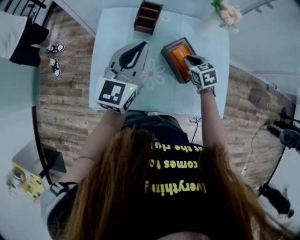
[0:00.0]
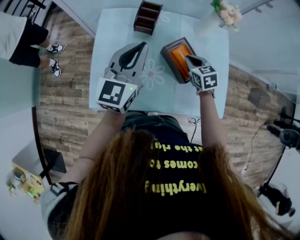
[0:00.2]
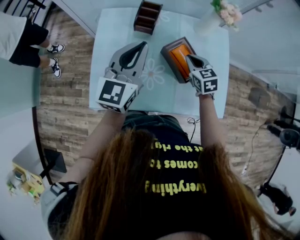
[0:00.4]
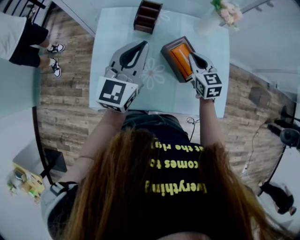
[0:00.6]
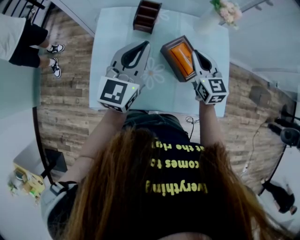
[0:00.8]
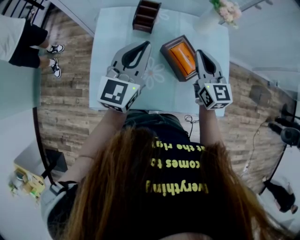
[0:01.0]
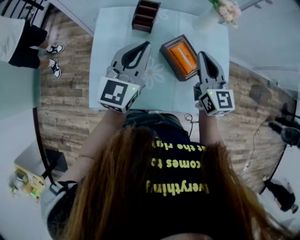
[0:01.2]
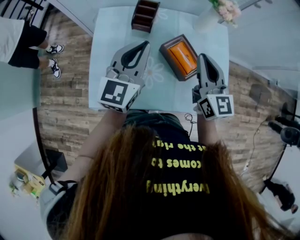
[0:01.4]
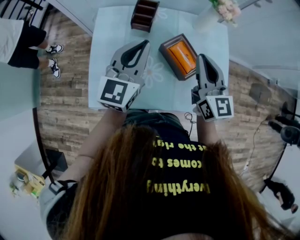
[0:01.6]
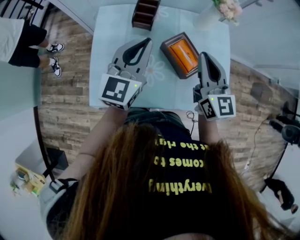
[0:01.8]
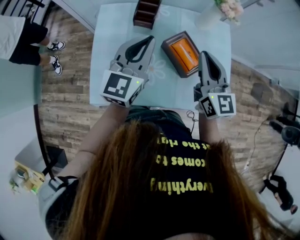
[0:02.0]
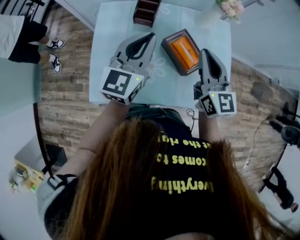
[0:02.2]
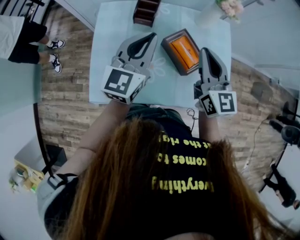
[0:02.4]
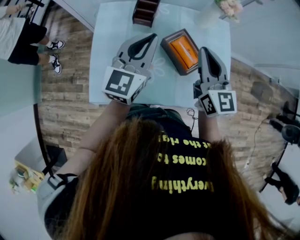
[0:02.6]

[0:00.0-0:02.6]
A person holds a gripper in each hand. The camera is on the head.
0.0 to 1.2 s: The right gripper heads upward, covering approximately 20 cm, and tilts its fingers about 40 degrees upward.
1.2 to 2.6 s: The grippers stay close to where they were, moving slightly.

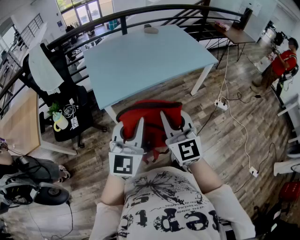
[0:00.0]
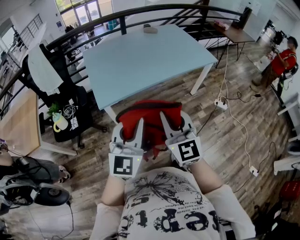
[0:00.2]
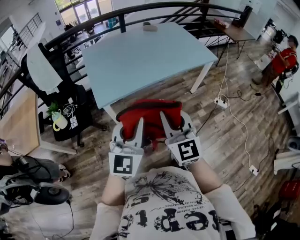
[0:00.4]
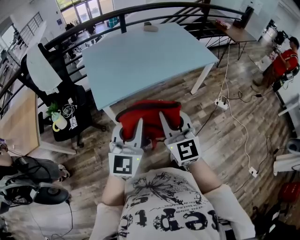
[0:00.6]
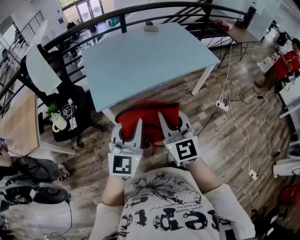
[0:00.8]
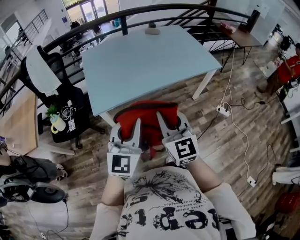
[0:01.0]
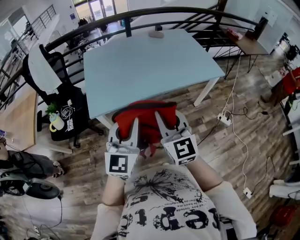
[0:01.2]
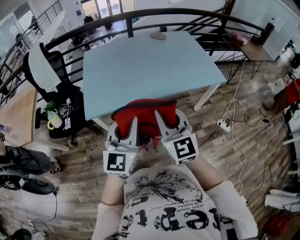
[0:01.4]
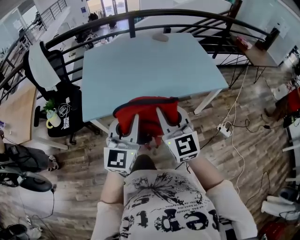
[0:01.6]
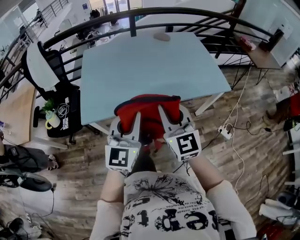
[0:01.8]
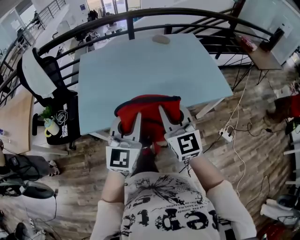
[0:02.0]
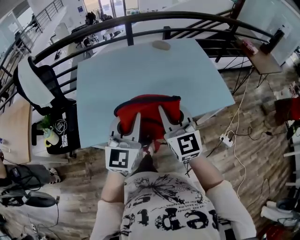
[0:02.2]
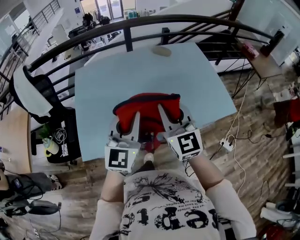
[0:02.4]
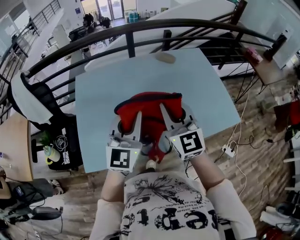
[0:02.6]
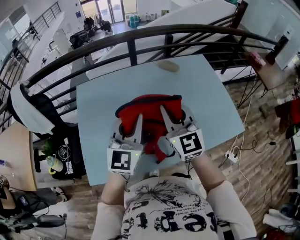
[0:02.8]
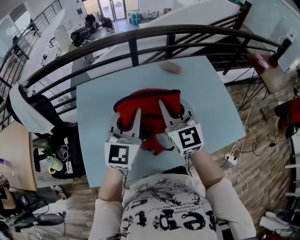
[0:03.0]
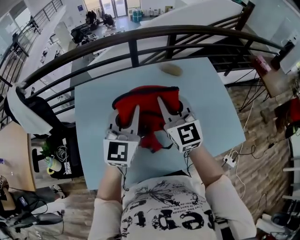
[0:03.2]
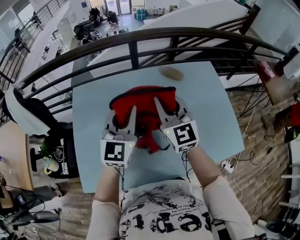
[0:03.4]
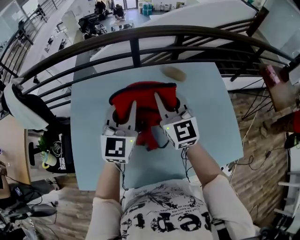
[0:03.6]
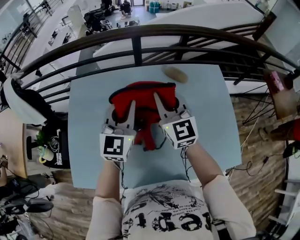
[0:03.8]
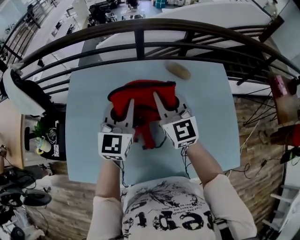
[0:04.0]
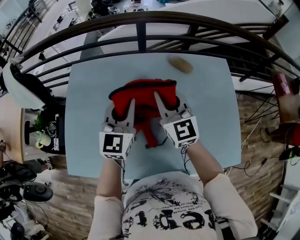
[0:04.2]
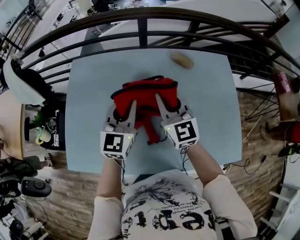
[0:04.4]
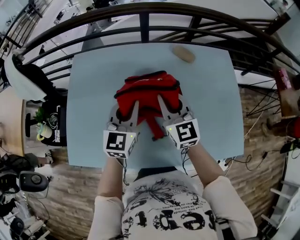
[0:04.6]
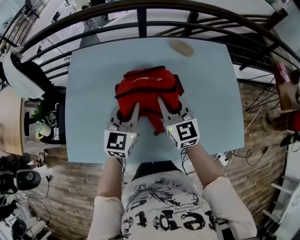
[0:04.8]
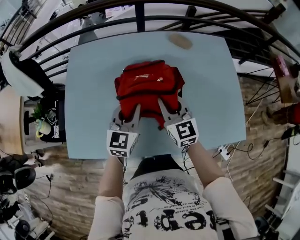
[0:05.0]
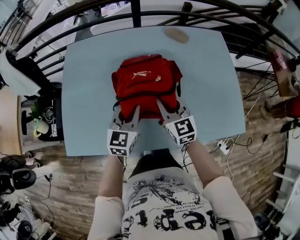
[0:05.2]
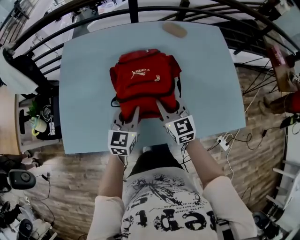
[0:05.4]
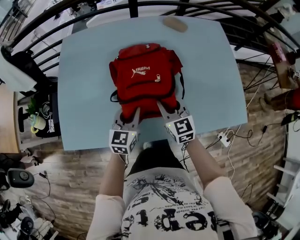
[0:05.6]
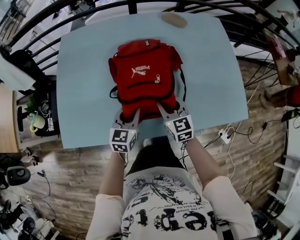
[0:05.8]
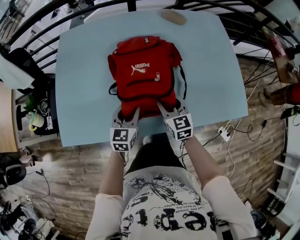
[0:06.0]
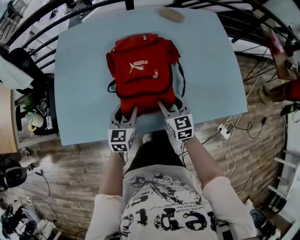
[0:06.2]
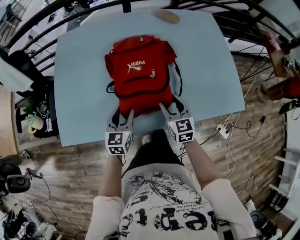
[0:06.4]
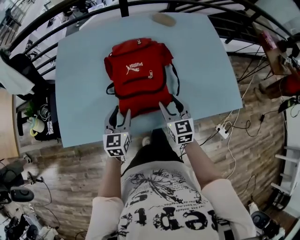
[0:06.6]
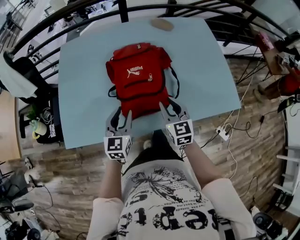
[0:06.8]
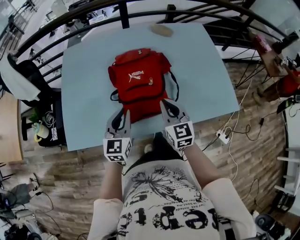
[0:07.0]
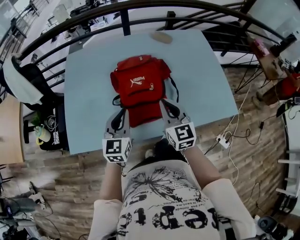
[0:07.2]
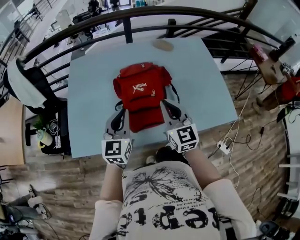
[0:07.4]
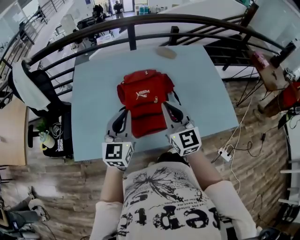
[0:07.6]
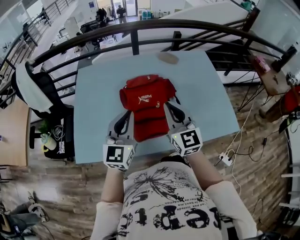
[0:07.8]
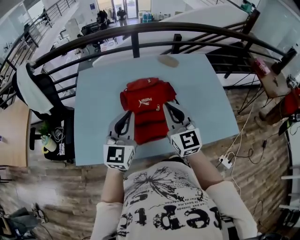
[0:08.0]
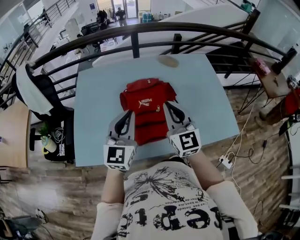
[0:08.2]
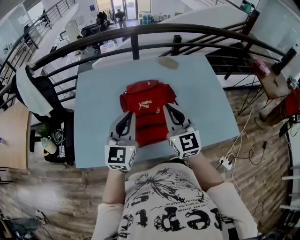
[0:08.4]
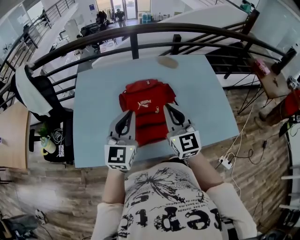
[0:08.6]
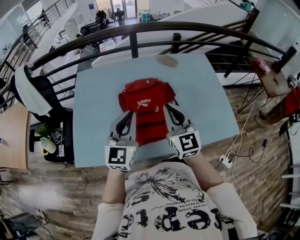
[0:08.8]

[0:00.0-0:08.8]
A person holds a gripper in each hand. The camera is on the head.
0.0 to 1.4 s: The two grippers go some 20 cm forward and to the right.
1.4 to 3.0 s: The pair of grippers is taken forward, roughly 50 cm.
3.0 to 4.4 s: The two grippers go about 15 cm forward, downward and to the right.
4.4 to 5.8 s: Both grippers travel together downward and backward, some 30 cm. The right gripper turns by roughly 20 degrees, and opens up, while the left gripper turns by some 20 degrees.
5.8 to 7.4 s: Both grippers travel together upward, about 20 cm. The right gripper closes up.
7.4 to 8.8 s: Both grippers move upward, about 5 cm.

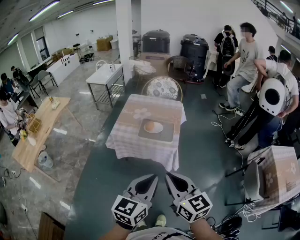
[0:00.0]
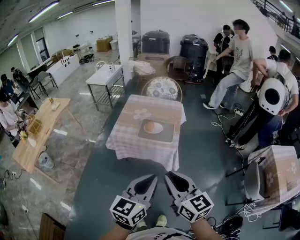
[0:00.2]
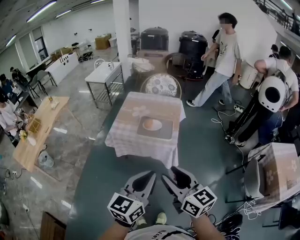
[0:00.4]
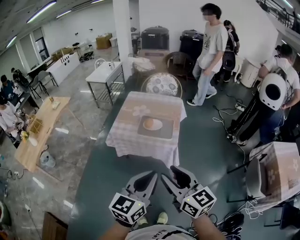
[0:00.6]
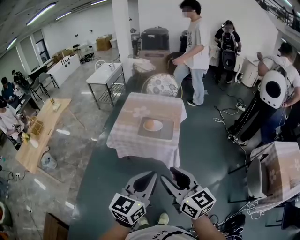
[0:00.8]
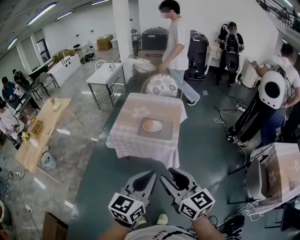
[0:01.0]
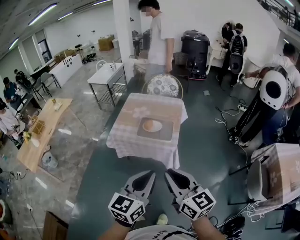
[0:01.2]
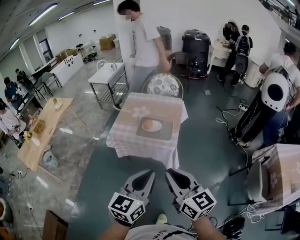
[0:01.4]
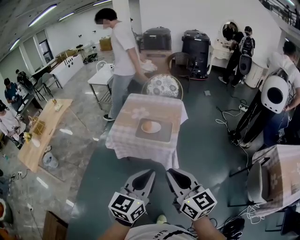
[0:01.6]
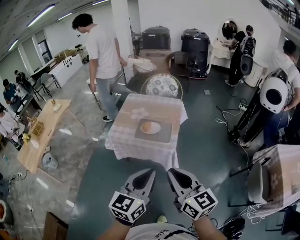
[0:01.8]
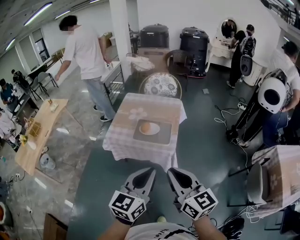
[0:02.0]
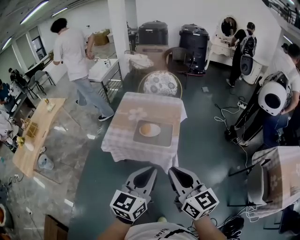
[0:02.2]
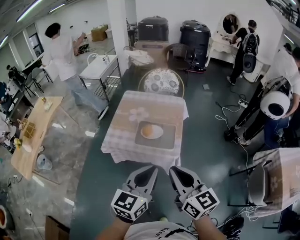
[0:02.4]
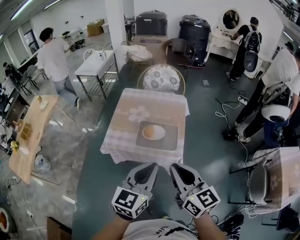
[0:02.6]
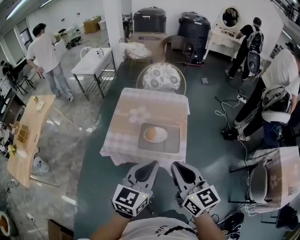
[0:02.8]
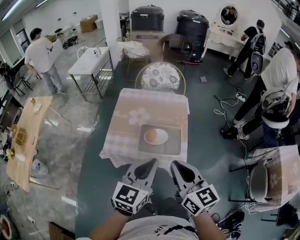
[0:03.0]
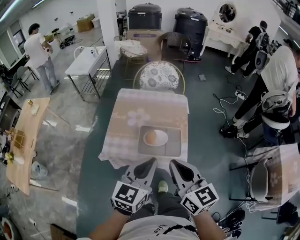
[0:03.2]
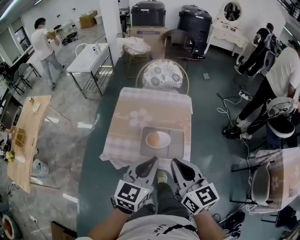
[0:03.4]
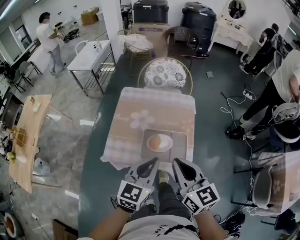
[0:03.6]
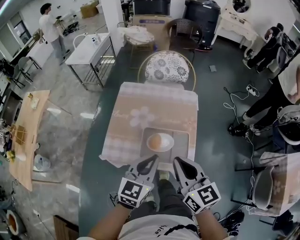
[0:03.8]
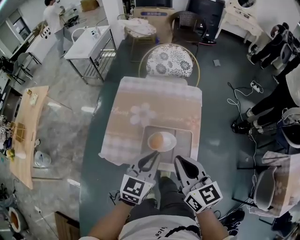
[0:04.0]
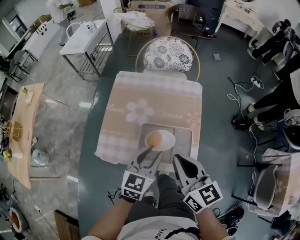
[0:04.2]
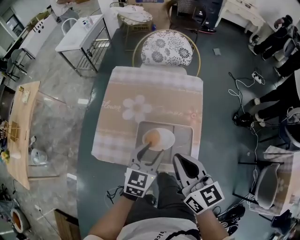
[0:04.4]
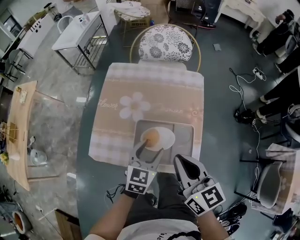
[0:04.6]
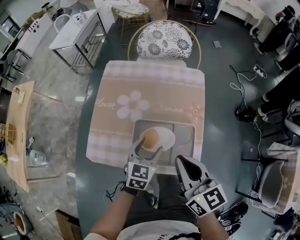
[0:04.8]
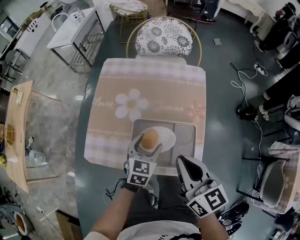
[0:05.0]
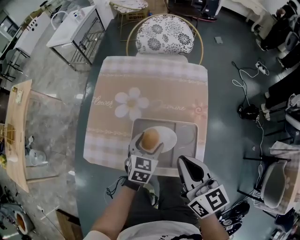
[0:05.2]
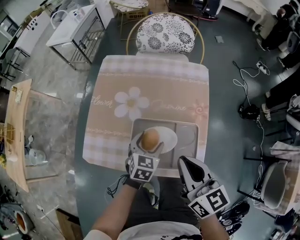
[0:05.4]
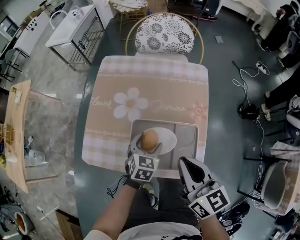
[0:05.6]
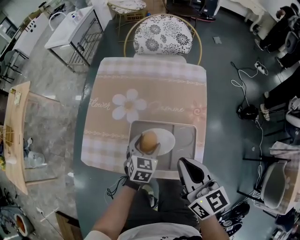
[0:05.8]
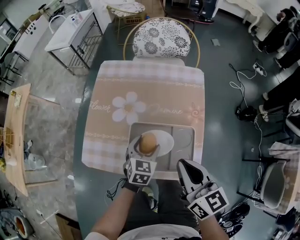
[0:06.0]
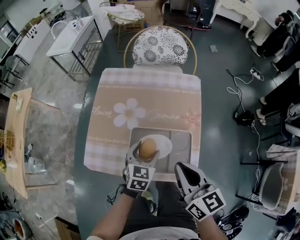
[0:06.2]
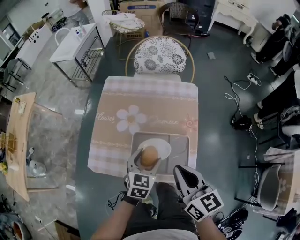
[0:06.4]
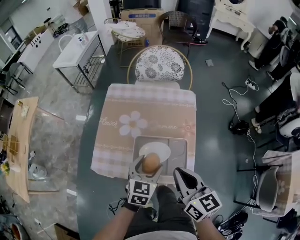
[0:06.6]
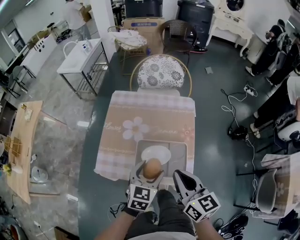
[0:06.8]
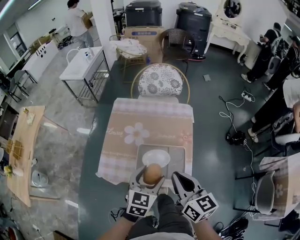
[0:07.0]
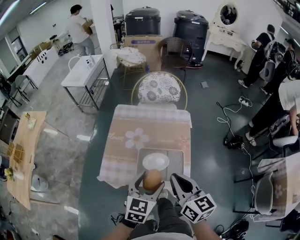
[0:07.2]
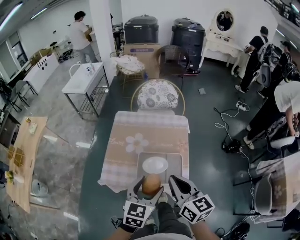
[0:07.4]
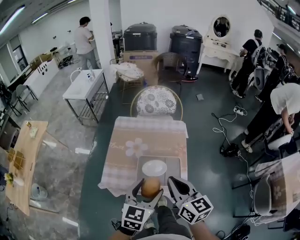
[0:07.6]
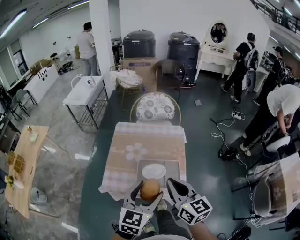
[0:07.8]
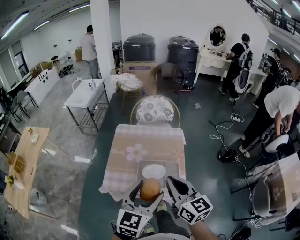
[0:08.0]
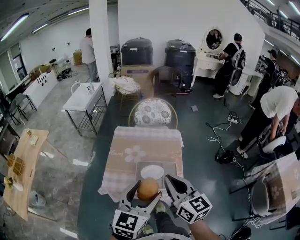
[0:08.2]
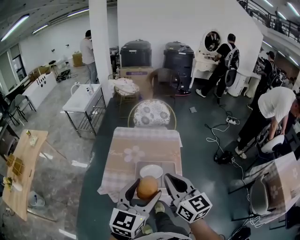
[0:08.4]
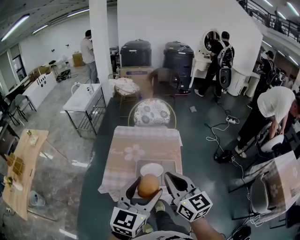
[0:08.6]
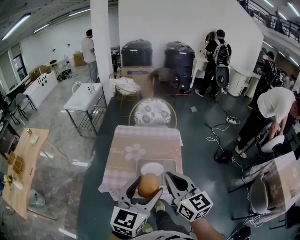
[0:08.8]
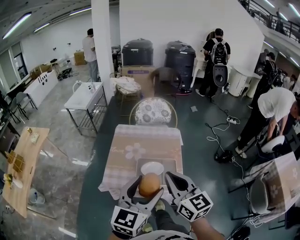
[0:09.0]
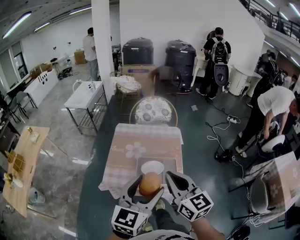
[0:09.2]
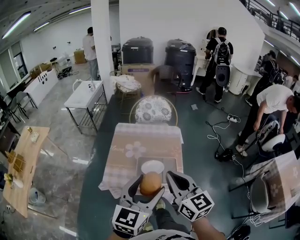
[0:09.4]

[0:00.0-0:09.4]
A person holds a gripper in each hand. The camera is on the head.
0.0 to 1.6 s: The left gripper ends up roughly 5 cm from where it was. Meanwhile the right gripper goes about 5 cm to the right, and opens, then closes again.
1.6 to 3.2 s: The two grippers go about 30 cm forward.
3.2 to 4.8 s: The left gripper is displaced downward and forward by about 35 cm, swivels roughly 20 degrees, and opens up. The right gripper heads downward and forward, covering about 25 cm.
4.8 to 6.2 s: The left gripper reaches some 10 cm downward, then returns.
6.2 to 7.8 s: The left gripper travels upward and backward by some 35 cm, and swivels roughly 20 degrees; the right gripper is displaced upward and backward by roughly 20 cm.
7.8 to 9.4 s: The right gripper goes roughly 5 cm upward. The left gripper is displaced upward and backward by roughly 10 cm.

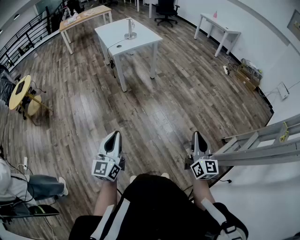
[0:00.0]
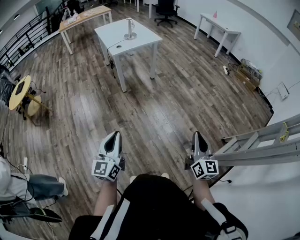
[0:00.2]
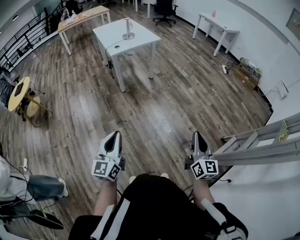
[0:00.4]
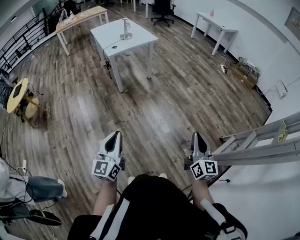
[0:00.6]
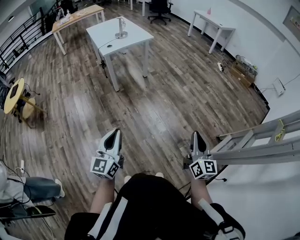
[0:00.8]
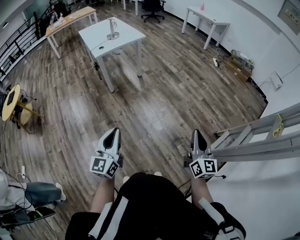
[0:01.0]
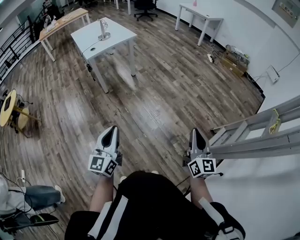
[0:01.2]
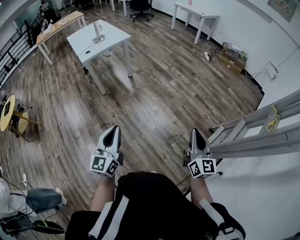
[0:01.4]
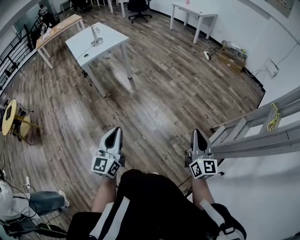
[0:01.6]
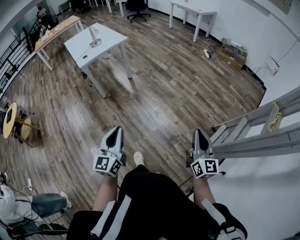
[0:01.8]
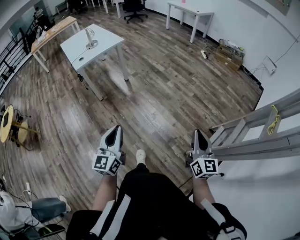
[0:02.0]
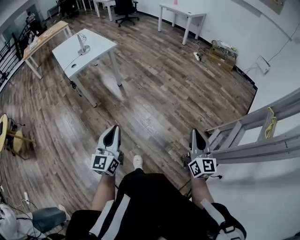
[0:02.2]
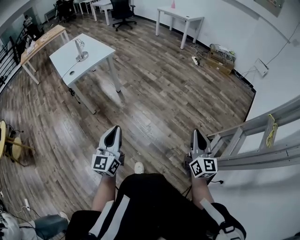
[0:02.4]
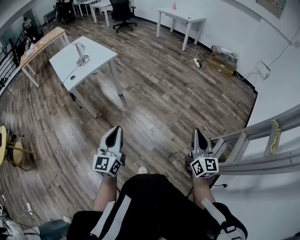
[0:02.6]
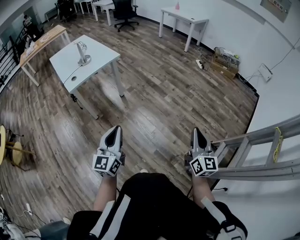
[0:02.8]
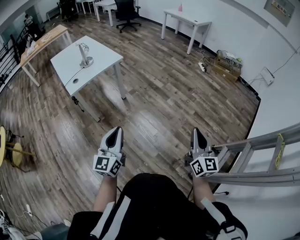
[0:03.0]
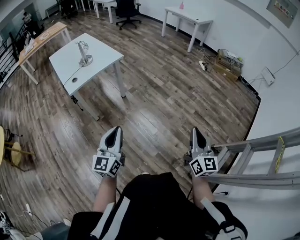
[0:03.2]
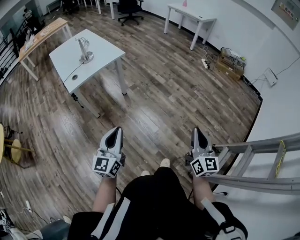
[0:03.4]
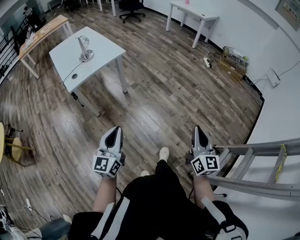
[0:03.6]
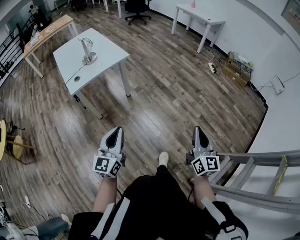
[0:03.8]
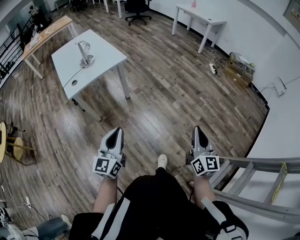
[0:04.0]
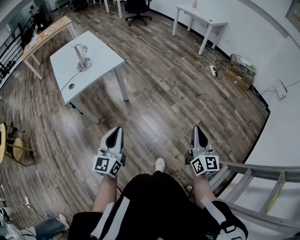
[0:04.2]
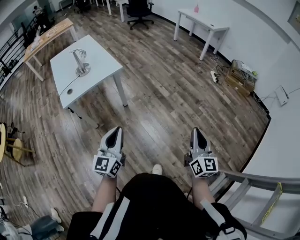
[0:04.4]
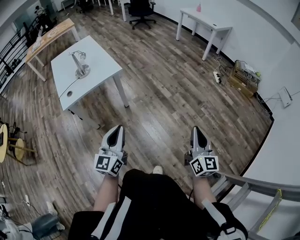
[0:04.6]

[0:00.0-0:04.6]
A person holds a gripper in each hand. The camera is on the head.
0.0 to 1.6 s: The right gripper shifts about 20 cm to the right. Meanwhile the left gripper is displaced to the right and forward by approximately 20 cm.
1.6 to 3.0 s: The right gripper moves forward and to the left, about 25 cm; the left gripper travels forward by about 25 cm.
3.0 to 4.6 s: Both grippers move forward, roughly 25 cm.
